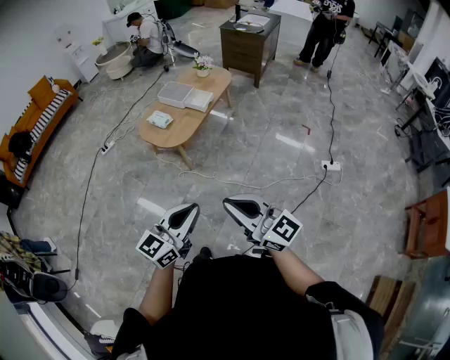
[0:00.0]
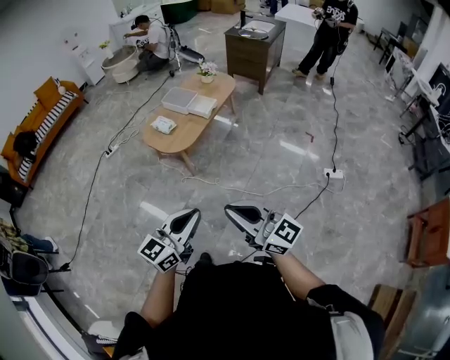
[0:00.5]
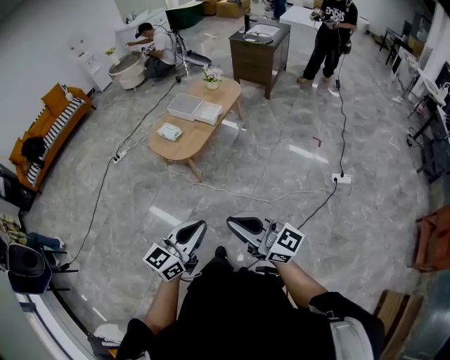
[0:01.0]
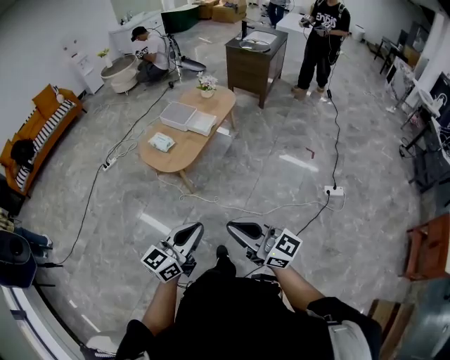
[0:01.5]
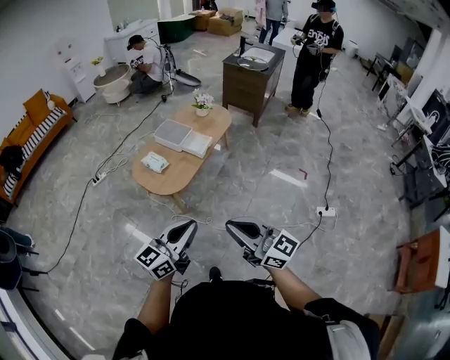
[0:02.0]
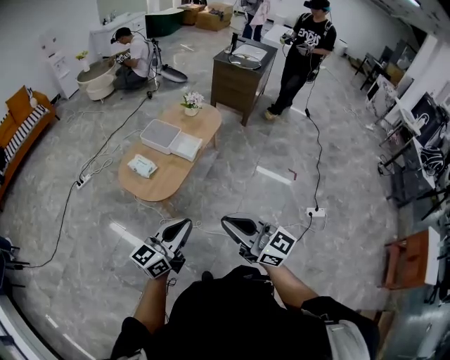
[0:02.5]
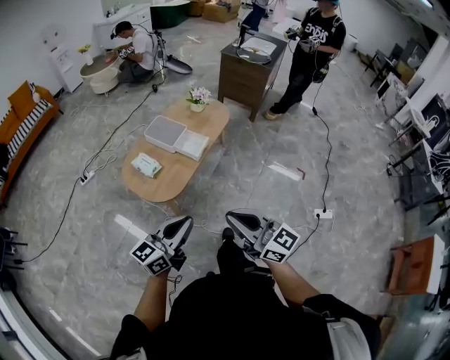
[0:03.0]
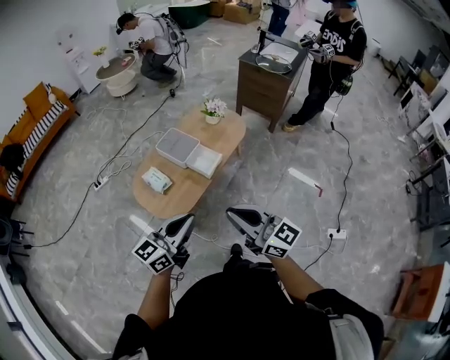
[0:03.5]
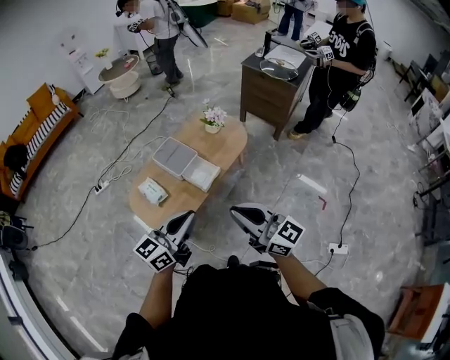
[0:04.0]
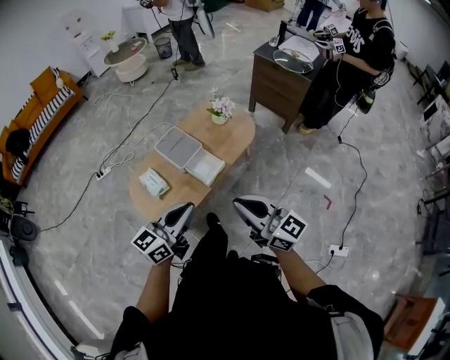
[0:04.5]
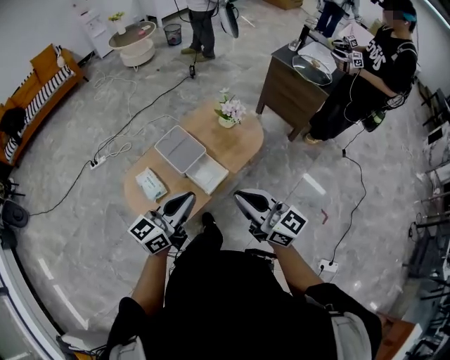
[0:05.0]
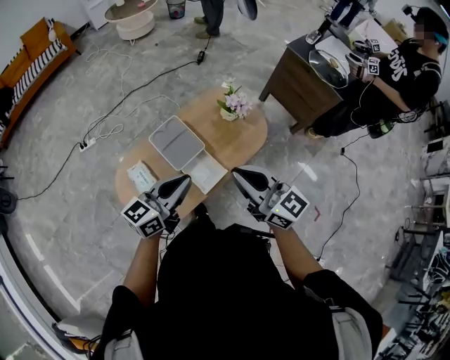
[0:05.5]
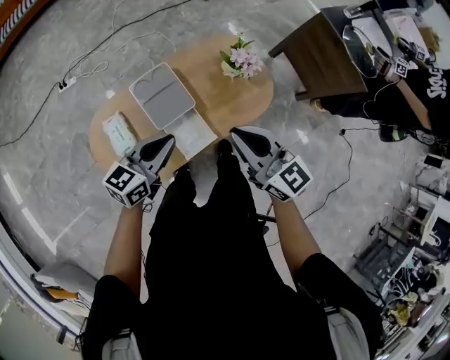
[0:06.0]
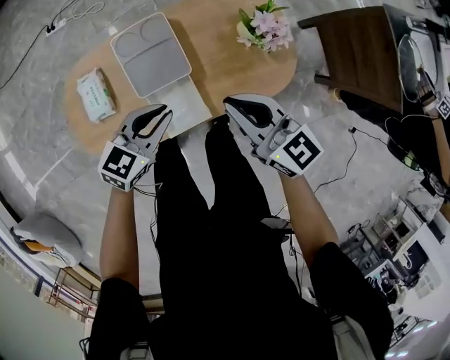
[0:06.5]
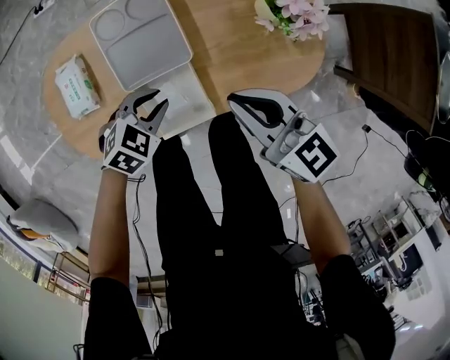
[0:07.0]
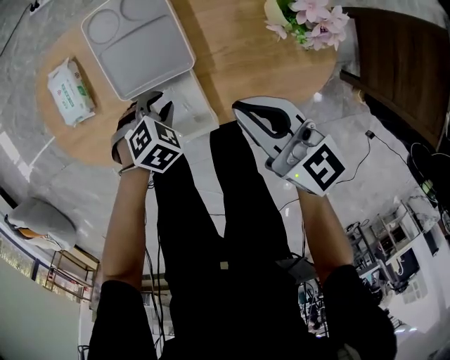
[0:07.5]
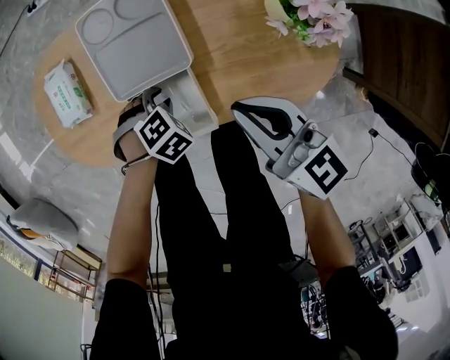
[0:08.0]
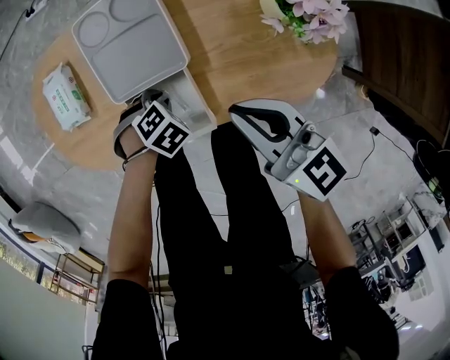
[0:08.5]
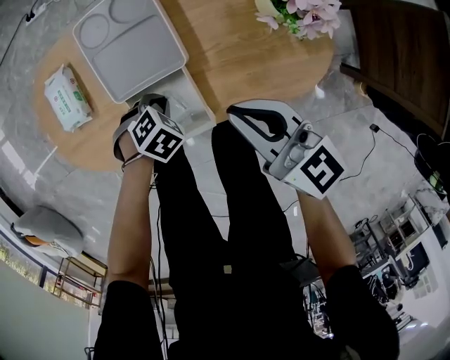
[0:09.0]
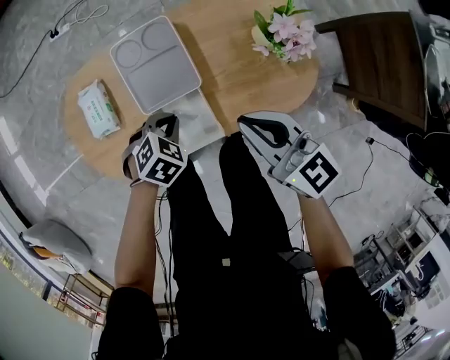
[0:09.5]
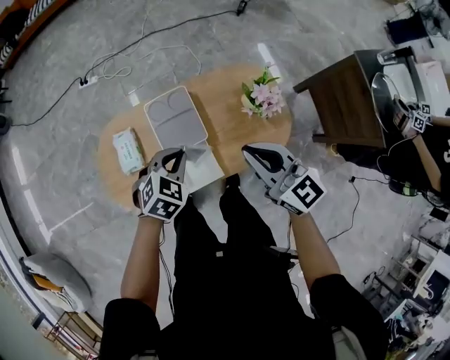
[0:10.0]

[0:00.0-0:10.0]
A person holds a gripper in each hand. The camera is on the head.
0:00.0 to 0:02.0: The two grippers go some 20 cm forward.
0:02.0 to 0:04.0: Both grippers are carried forward, some 40 cm.
0:04.0 to 0:06.0: The pair of grippers is taken forward, some 40 cm. The right gripper swivels about 20 degrees. The left gripper is displaced downward by some 20 cm, and changes its angle by approximately 20 degrees.
0:06.0 to 0:08.0: Both grippers move downward, some 35 cm. The right gripper rotates about 30 degrees. Meanwhile the left gripper tips its fingers downward by some 70 degrees, and opens up.
0:08.0 to 0:10.0: The grippers both shift upward by about 30 cm. The left gripper tips its fingers upward by some 30 degrees, and closes.

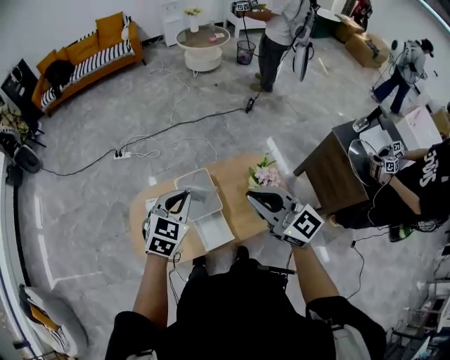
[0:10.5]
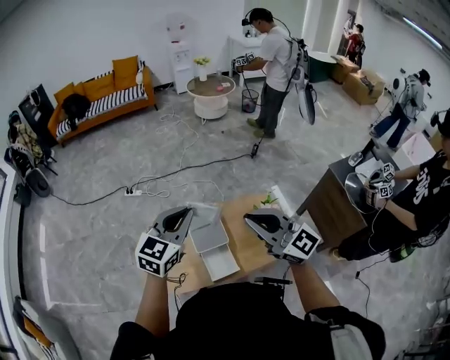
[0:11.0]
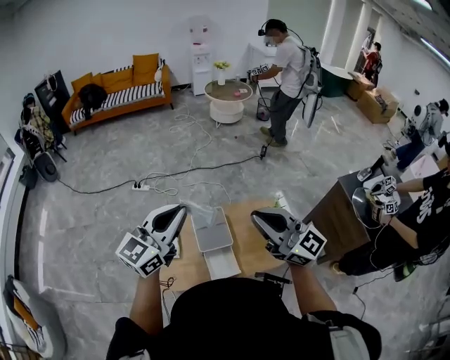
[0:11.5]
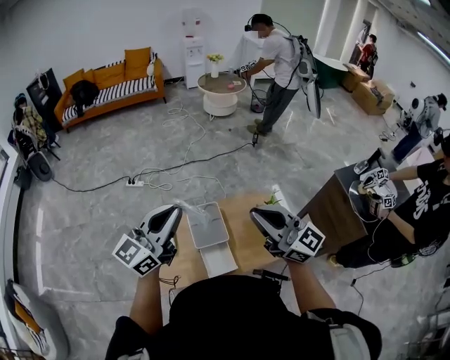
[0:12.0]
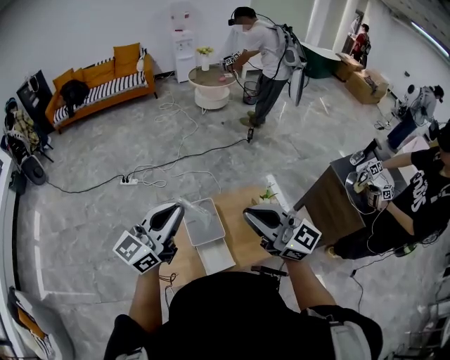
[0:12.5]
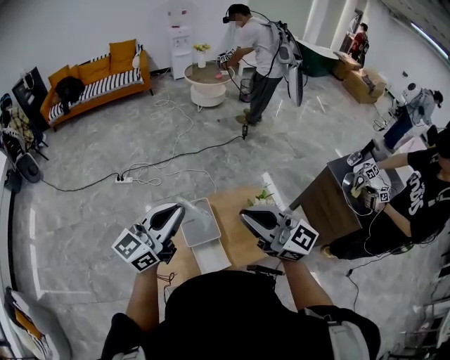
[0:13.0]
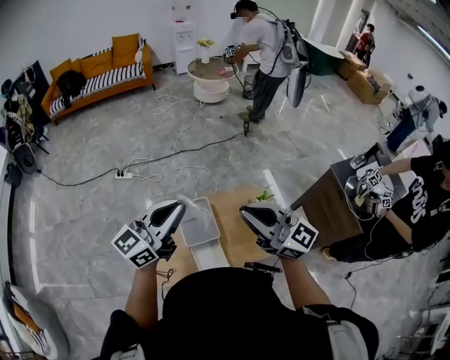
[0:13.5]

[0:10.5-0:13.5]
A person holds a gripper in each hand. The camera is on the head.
0:10.5 to 0:12.0: The left gripper travels upward and to the left by approximately 20 cm, and tilts its fingers some 40 degrees upward. Meanwhile the right gripper is displaced upward by roughly 10 cm.
0:12.0 to 0:13.5: The left gripper is displaced forward and to the right by approximately 10 cm. The right gripper travels forward by some 5 cm.

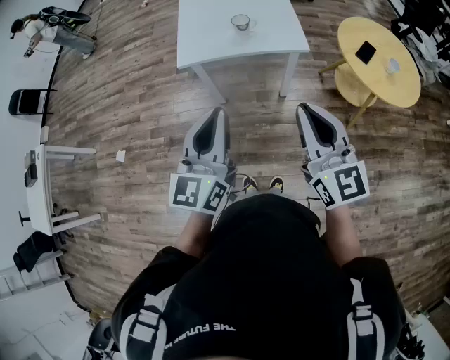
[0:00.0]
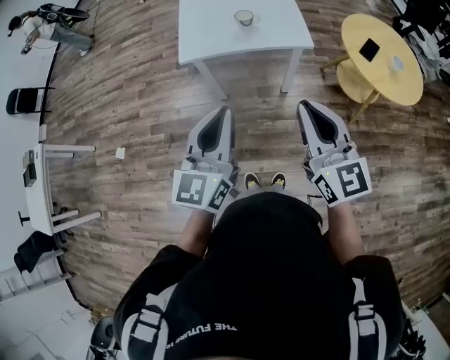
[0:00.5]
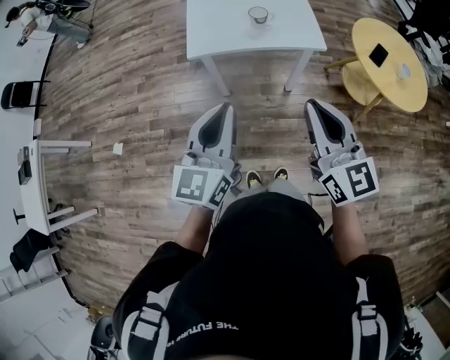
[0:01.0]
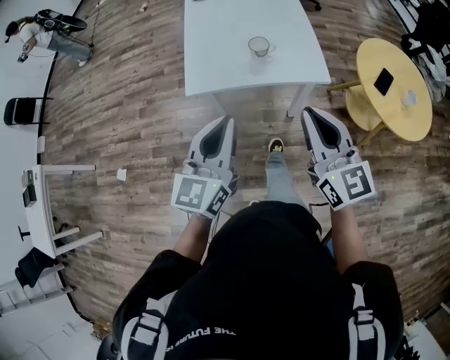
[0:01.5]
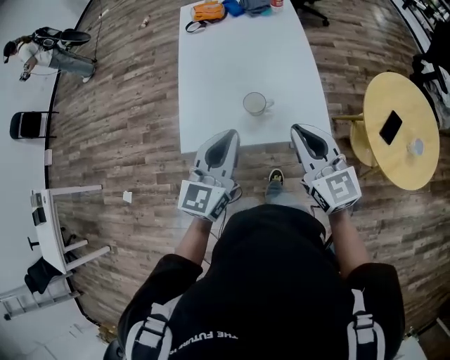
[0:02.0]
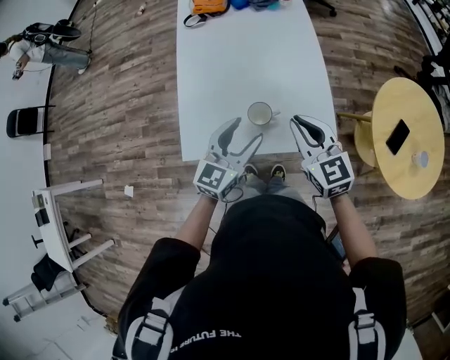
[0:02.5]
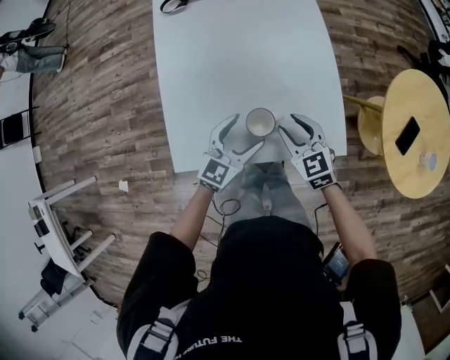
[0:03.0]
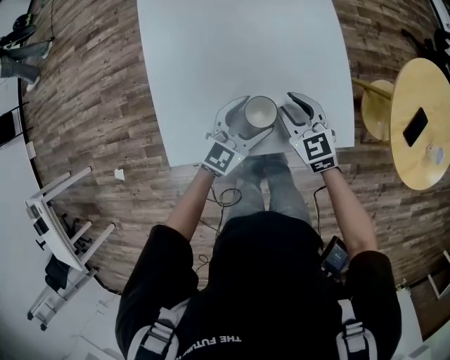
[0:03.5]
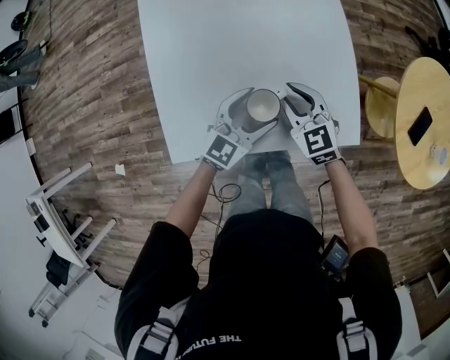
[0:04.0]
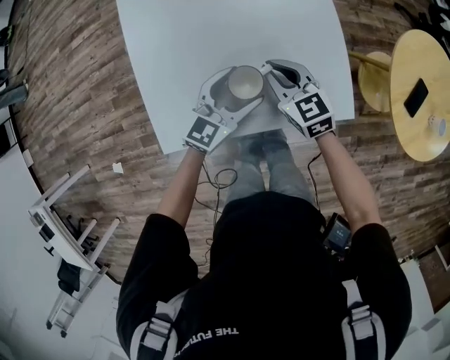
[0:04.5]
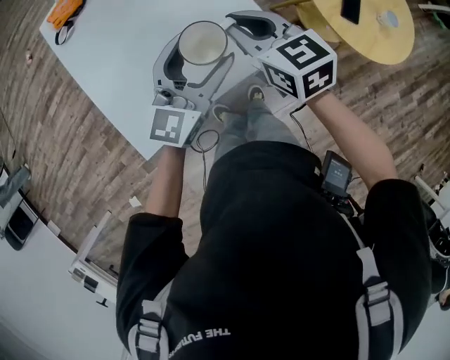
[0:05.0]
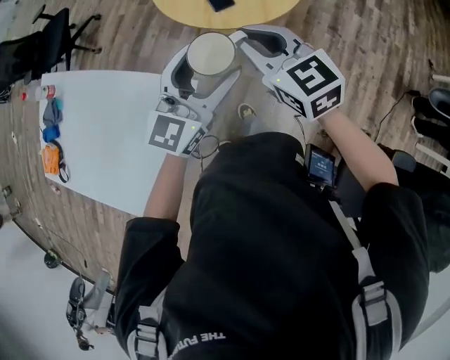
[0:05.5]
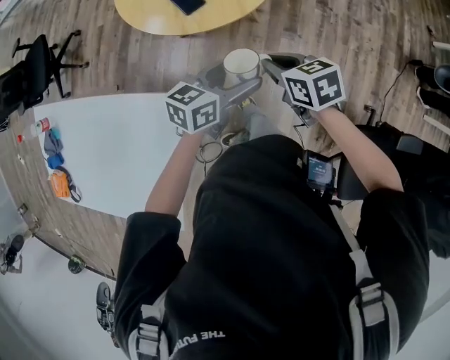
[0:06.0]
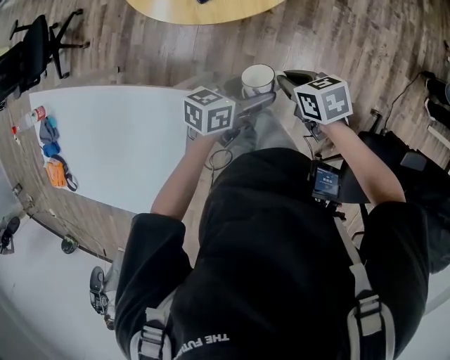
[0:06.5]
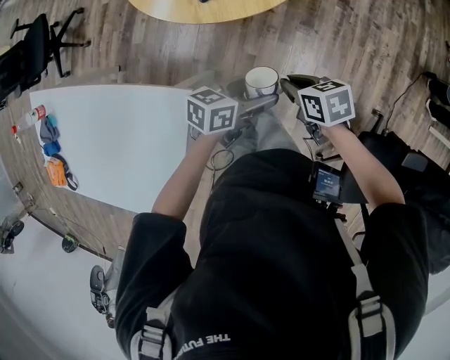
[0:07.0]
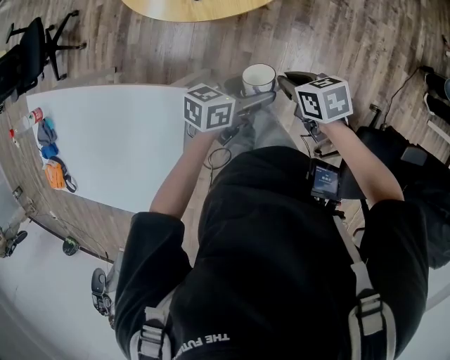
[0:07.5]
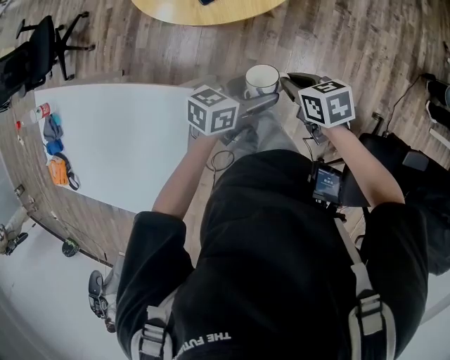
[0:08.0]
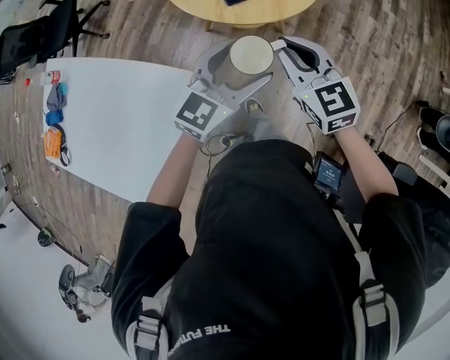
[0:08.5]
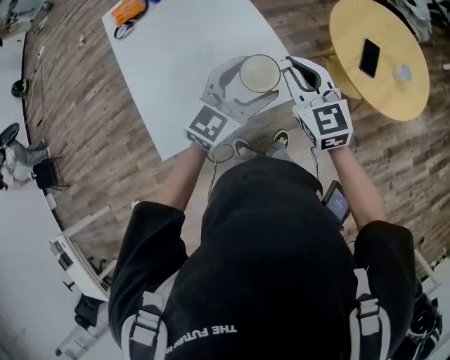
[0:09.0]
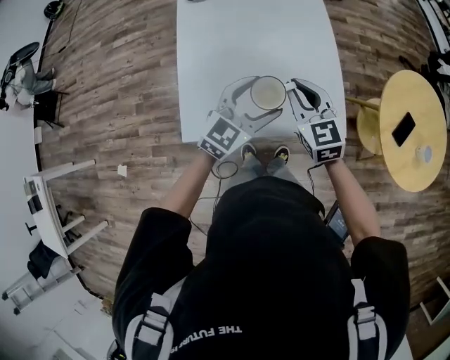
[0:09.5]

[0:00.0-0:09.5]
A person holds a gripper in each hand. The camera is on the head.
0:00.0 to 0:02.0: The two grippers travel together, forward, approximately 40 cm.
0:02.0 to 0:04.0: Both grippers move downward and forward, some 35 cm. The left gripper changes its angle by approximately 30 degrees, and opens up; the right gripper rotates about 30 degrees, and opens.
0:04.0 to 0:05.5: The pair of grippers is taken approximately 40 cm. The right gripper changes its angle by approximately 60 degrees. Meanwhile the left gripper swivels roughly 50 degrees.
0:05.5 to 0:07.5: The two grippers go about 25 cm downward. The left gripper changes its angle by roughly 60 degrees. The right gripper angles its fingers downward, by about 30 degrees.
0:07.5 to 0:09.5: The pair of grippers is taken roughly 50 cm. The right gripper rotates around the line of its fingers by about 70 degrees, counterclockwise from behind, while the left gripper swivels some 90 degrees.

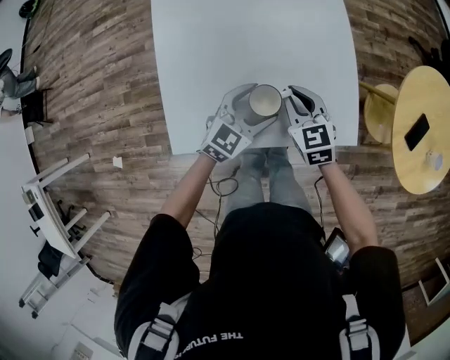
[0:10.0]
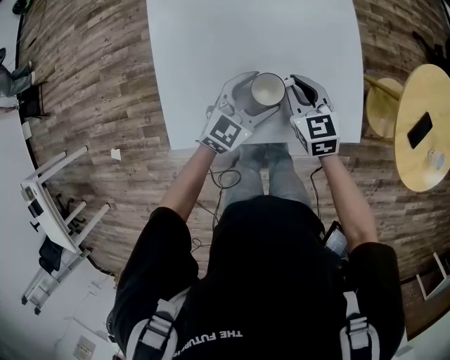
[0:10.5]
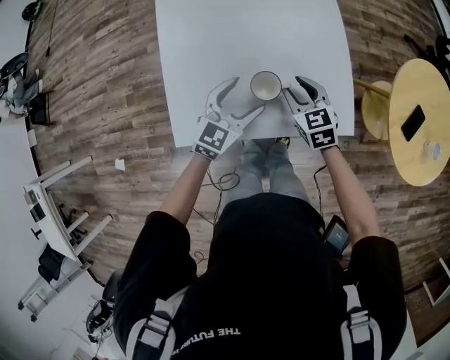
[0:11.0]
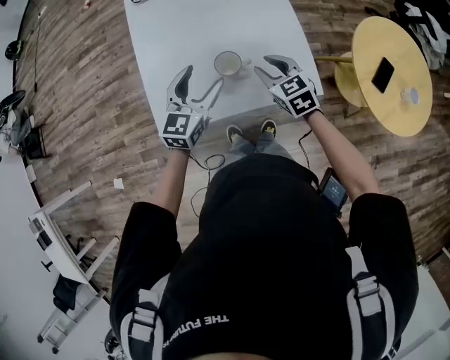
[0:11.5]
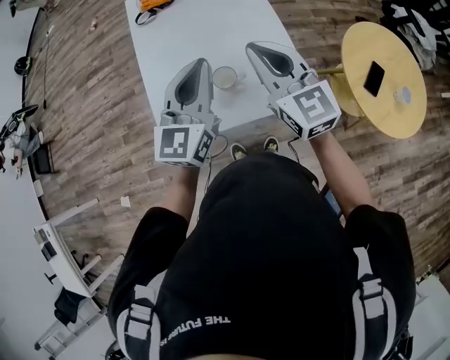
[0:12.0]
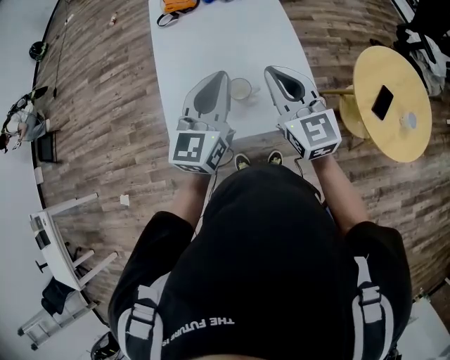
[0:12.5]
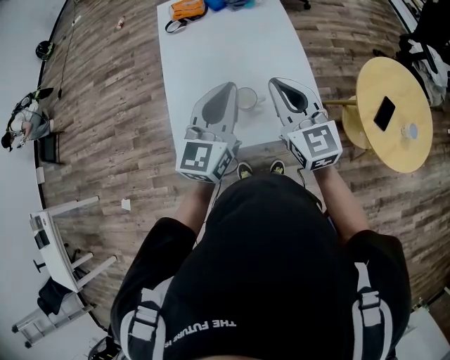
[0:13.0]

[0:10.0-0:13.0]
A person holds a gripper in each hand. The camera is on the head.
0:10.0 to 0:11.5: The left gripper heads upward and to the left, covering about 15 cm, and changes its angle by about 20 degrees; the right gripper heads upward, covering approximately 5 cm, and opens.
0:11.5 to 0:13.0: Both grippers travel together upward, roughly 20 cm. The right gripper tips its fingers upward by about 30 degrees, and closes up. The left gripper closes.
